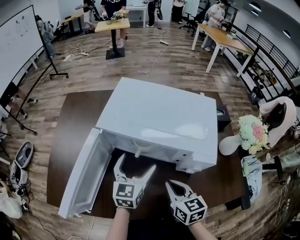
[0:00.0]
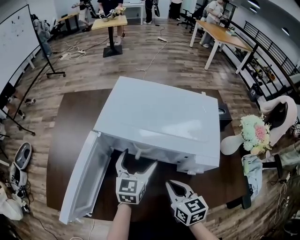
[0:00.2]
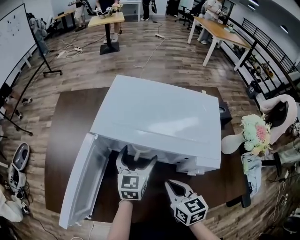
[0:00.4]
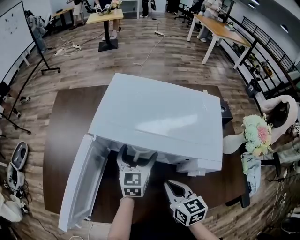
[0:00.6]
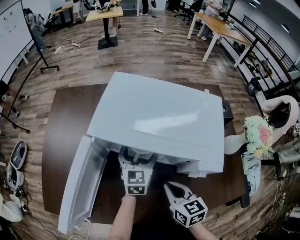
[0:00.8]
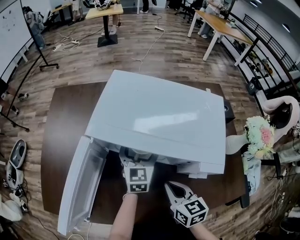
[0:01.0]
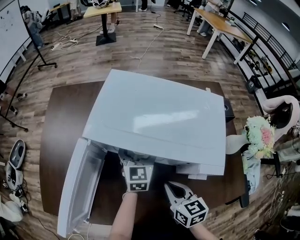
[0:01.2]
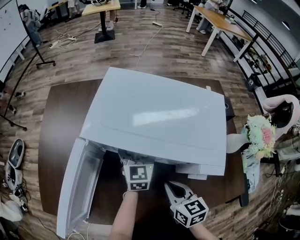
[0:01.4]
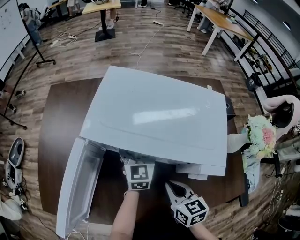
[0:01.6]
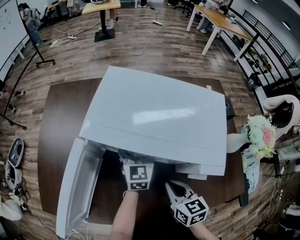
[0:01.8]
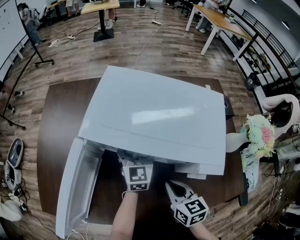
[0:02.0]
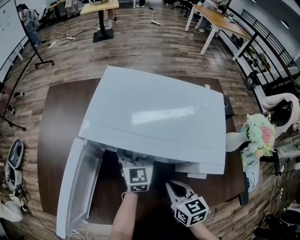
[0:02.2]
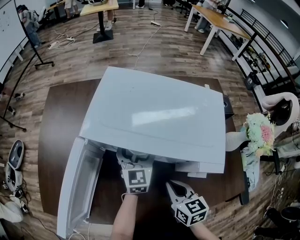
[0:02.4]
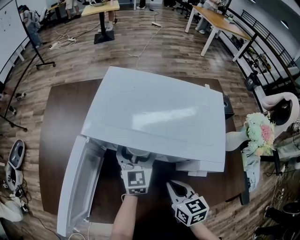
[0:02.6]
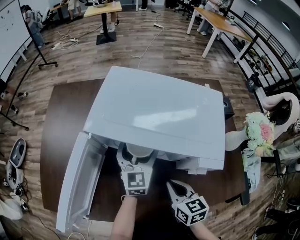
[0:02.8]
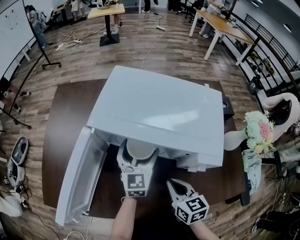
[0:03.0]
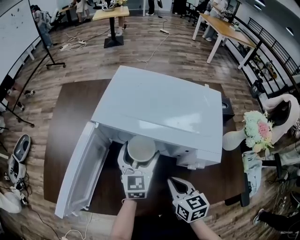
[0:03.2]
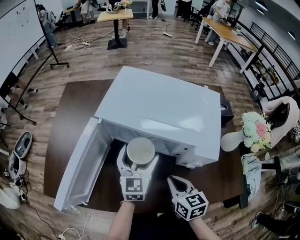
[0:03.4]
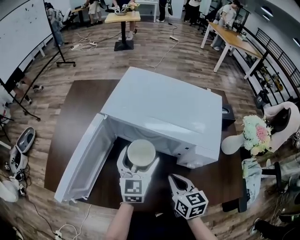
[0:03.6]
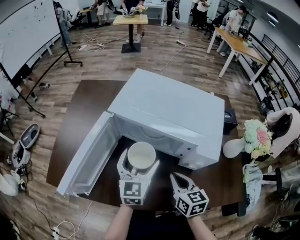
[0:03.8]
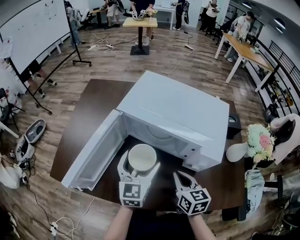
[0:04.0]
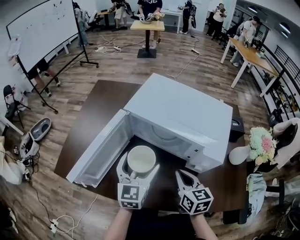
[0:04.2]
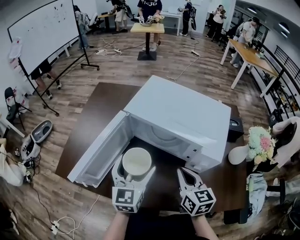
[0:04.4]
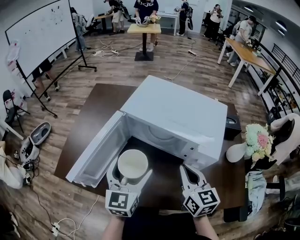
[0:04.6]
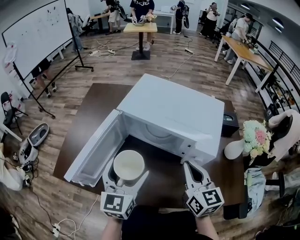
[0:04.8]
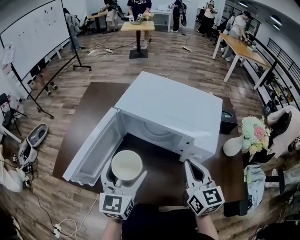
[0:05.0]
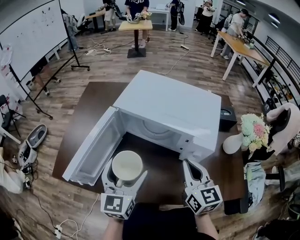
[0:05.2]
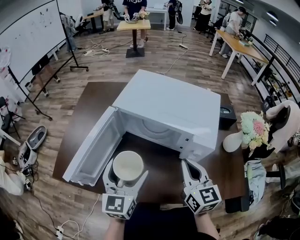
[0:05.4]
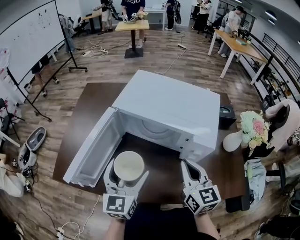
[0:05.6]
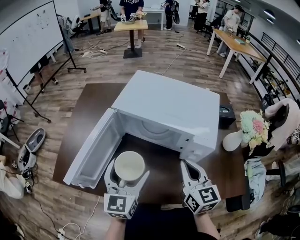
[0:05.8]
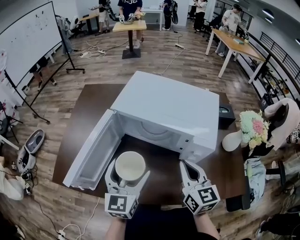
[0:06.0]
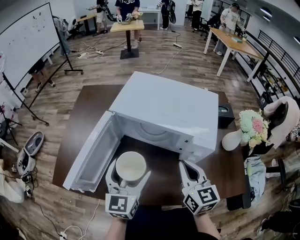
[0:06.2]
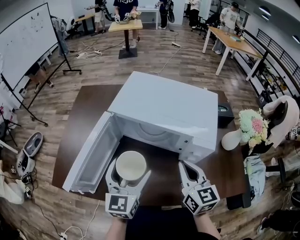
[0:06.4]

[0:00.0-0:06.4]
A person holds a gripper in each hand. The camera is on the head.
0:00.0 to 0:01.6: The left gripper travels forward by some 10 cm. Meanwhile the right gripper ends up approximately 5 cm from where it was.
0:01.6 to 0:03.2: The left gripper goes approximately 10 cm backward.
0:03.2 to 0:04.8: The right gripper is displaced upward by some 15 cm, and swivels some 20 degrees, while the left gripper shifts some 20 cm backward, upward and to the left.
0:04.8 to 0:06.4: The grippers make only small movements.

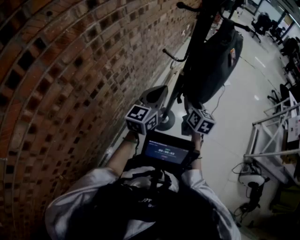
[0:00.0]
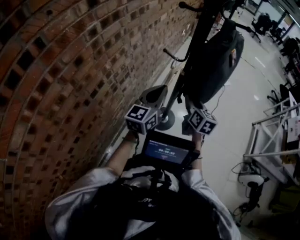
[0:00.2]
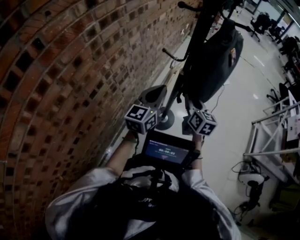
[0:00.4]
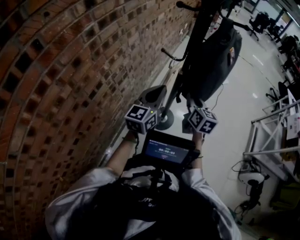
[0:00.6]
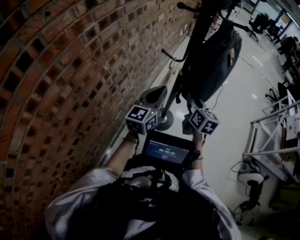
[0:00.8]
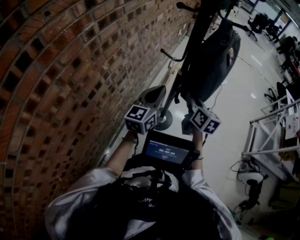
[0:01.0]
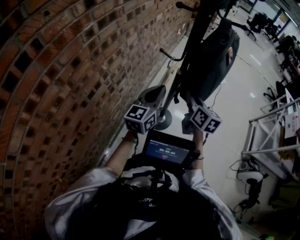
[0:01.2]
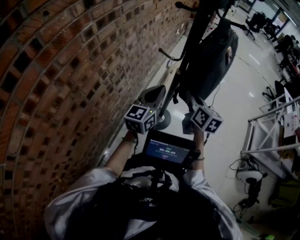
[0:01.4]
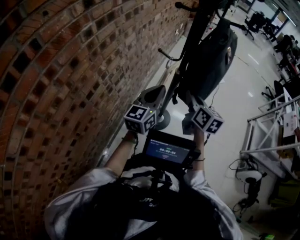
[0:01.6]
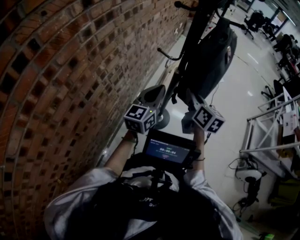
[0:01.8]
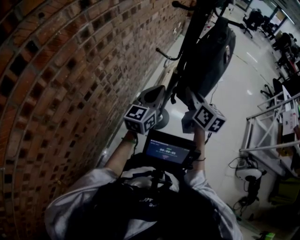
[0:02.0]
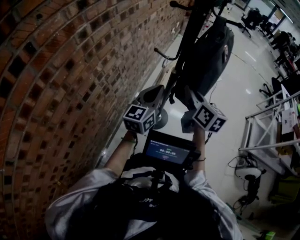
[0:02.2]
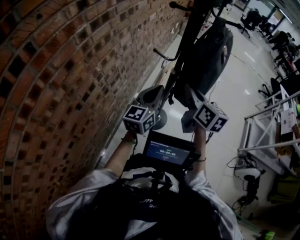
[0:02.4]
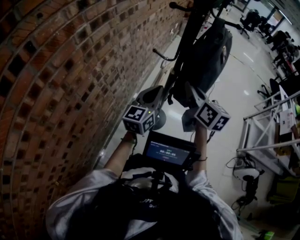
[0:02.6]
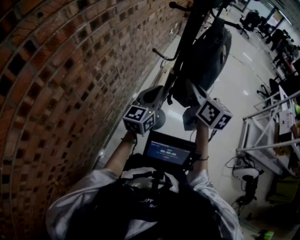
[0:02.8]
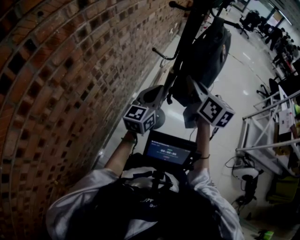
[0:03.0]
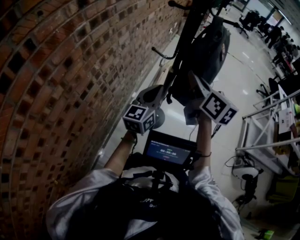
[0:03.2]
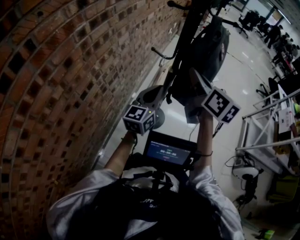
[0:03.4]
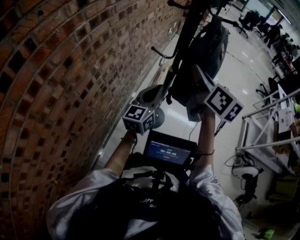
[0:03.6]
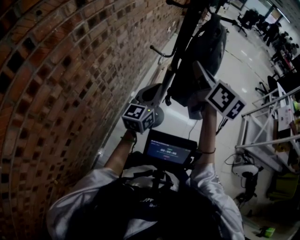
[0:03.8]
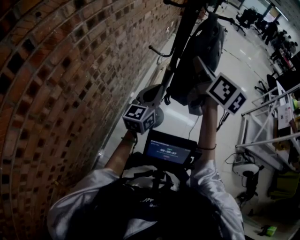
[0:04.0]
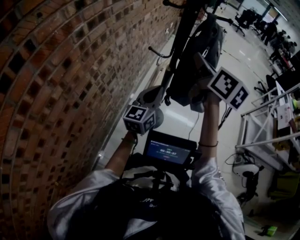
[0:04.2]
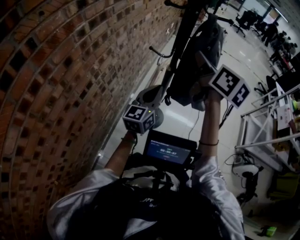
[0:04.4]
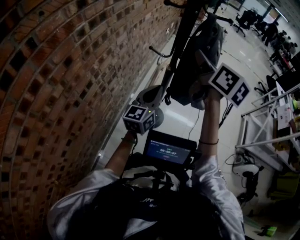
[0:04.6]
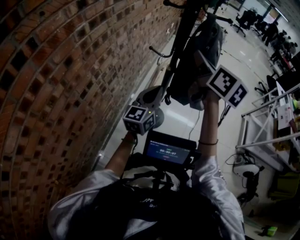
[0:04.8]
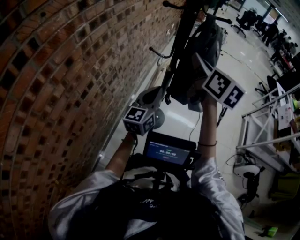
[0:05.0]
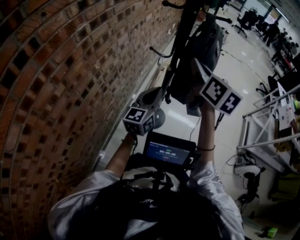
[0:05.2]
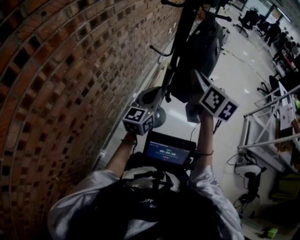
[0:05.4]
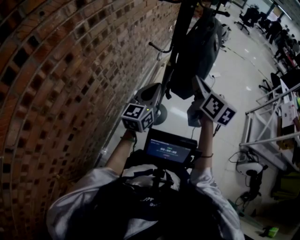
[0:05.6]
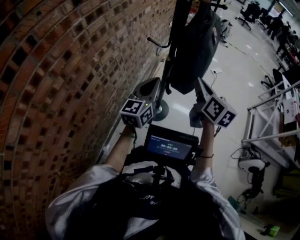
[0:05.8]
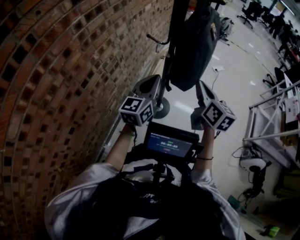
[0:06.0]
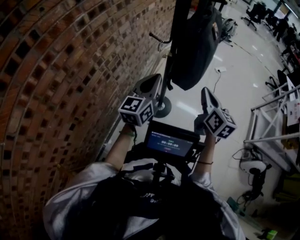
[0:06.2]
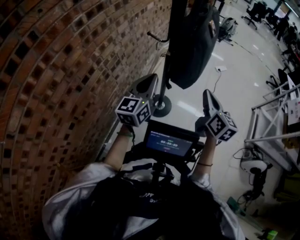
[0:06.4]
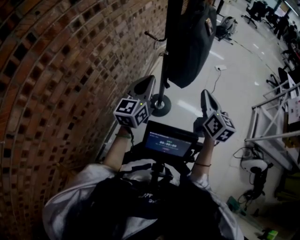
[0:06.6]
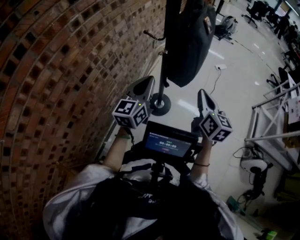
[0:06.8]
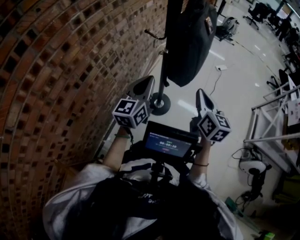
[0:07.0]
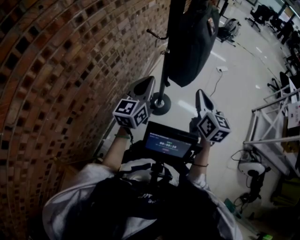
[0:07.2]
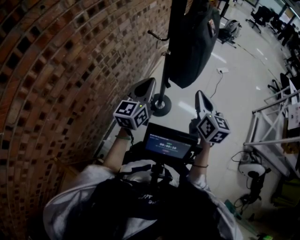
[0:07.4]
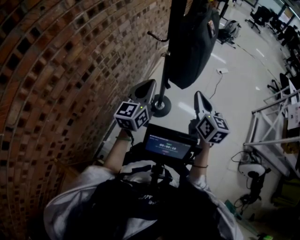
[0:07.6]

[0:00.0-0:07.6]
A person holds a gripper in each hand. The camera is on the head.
0:00.0 to 0:01.6: The right gripper shifts about 10 cm upward, and closes up.
0:01.6 to 0:03.0: The right gripper is displaced upward by about 10 cm.
0:03.0 to 0:04.6: The right gripper travels upward by roughly 10 cm.
0:04.6 to 0:06.0: The right gripper goes approximately 20 cm downward, to the right and backward.
0:06.0 to 0:07.6: The right gripper changes place by roughly 5 cm.

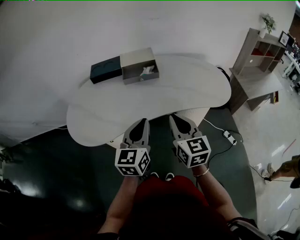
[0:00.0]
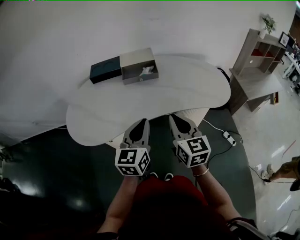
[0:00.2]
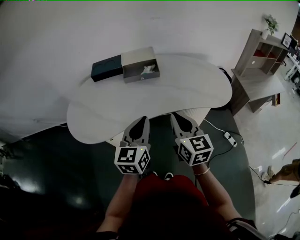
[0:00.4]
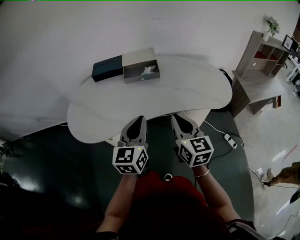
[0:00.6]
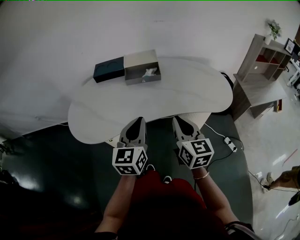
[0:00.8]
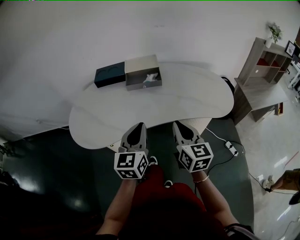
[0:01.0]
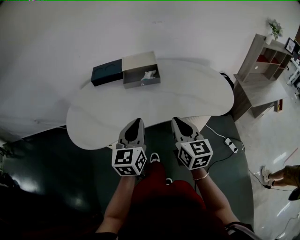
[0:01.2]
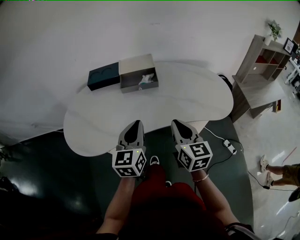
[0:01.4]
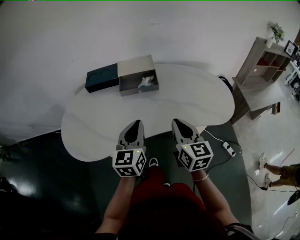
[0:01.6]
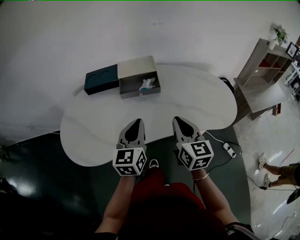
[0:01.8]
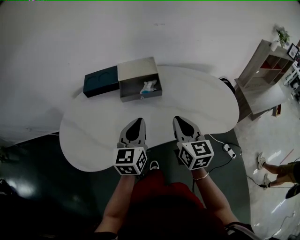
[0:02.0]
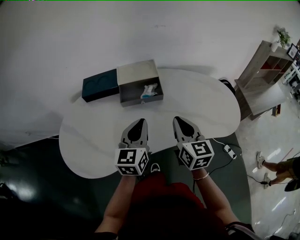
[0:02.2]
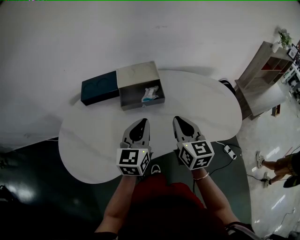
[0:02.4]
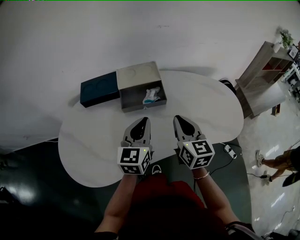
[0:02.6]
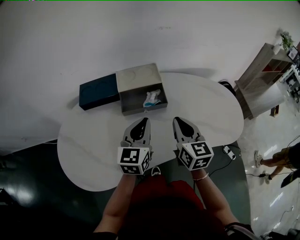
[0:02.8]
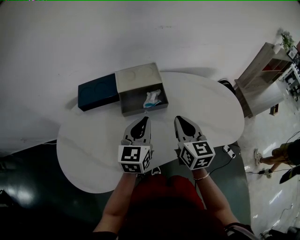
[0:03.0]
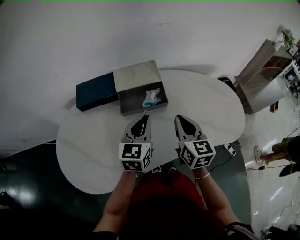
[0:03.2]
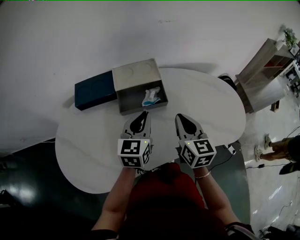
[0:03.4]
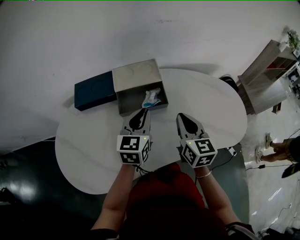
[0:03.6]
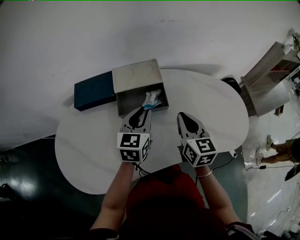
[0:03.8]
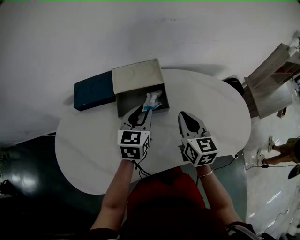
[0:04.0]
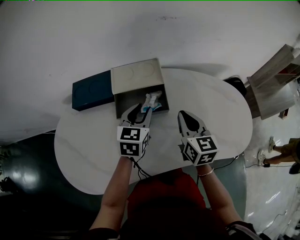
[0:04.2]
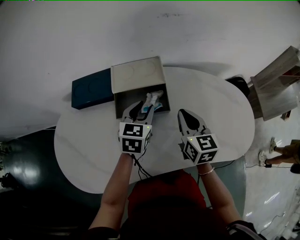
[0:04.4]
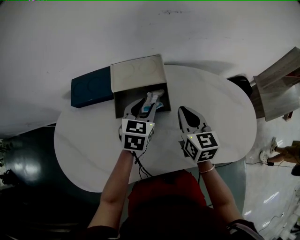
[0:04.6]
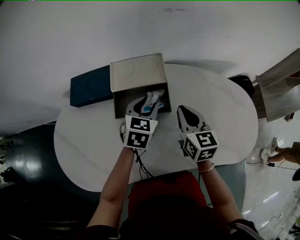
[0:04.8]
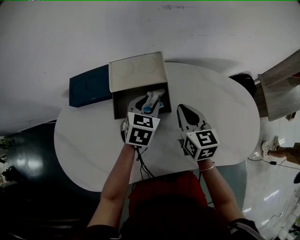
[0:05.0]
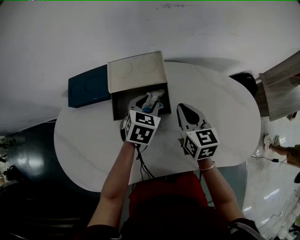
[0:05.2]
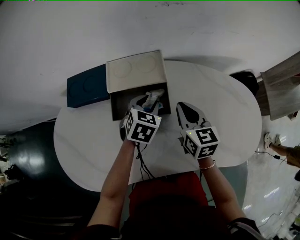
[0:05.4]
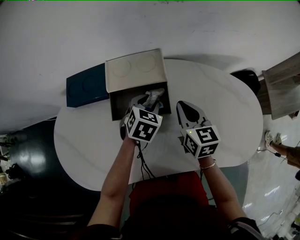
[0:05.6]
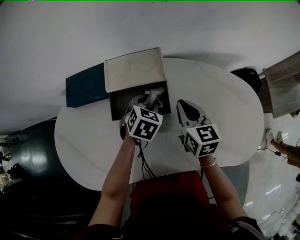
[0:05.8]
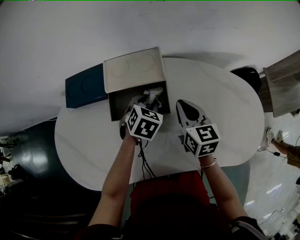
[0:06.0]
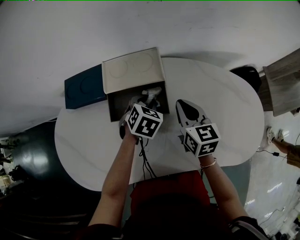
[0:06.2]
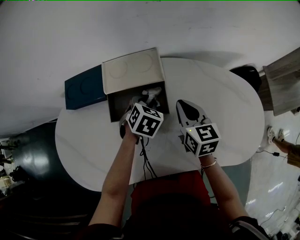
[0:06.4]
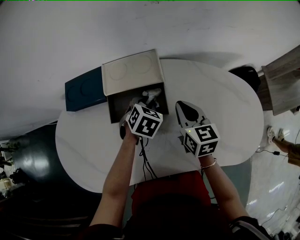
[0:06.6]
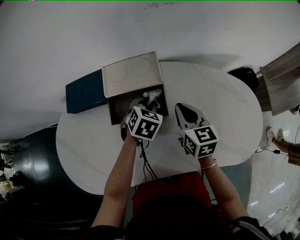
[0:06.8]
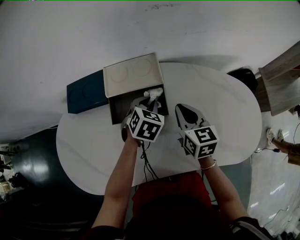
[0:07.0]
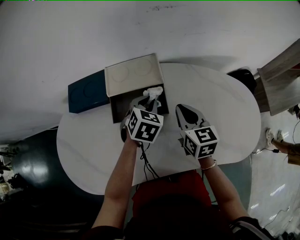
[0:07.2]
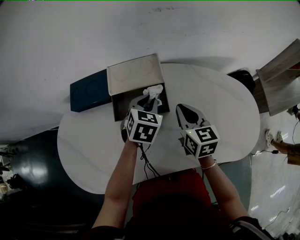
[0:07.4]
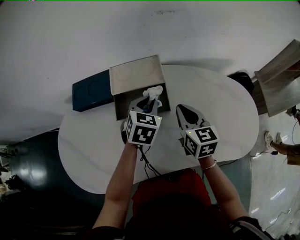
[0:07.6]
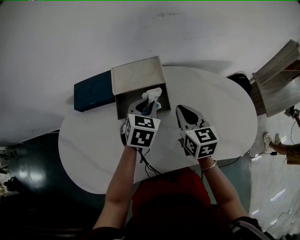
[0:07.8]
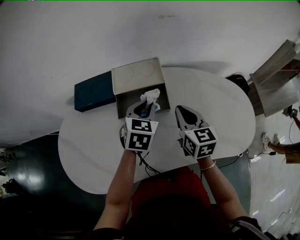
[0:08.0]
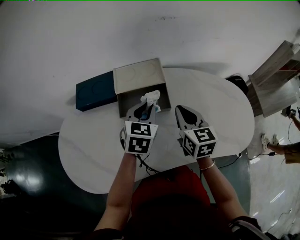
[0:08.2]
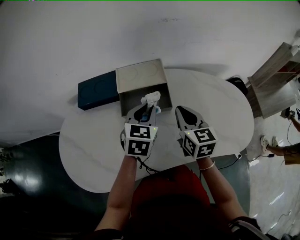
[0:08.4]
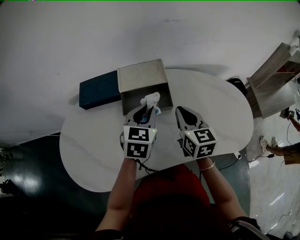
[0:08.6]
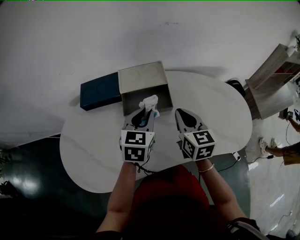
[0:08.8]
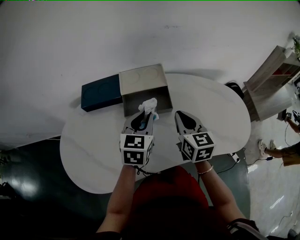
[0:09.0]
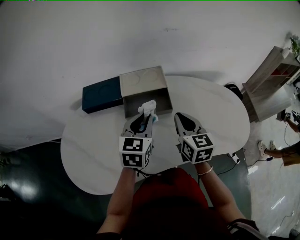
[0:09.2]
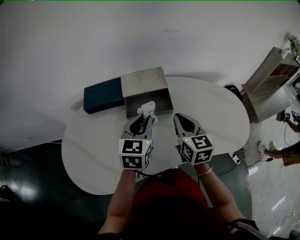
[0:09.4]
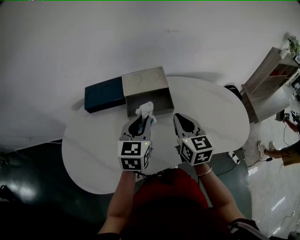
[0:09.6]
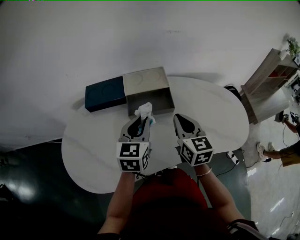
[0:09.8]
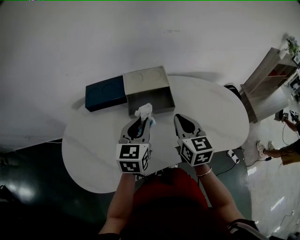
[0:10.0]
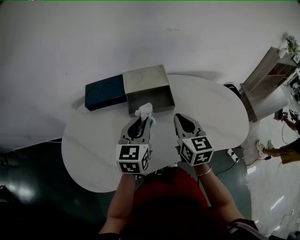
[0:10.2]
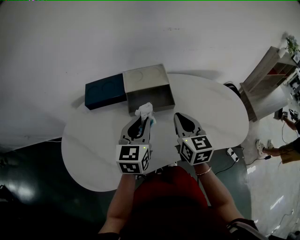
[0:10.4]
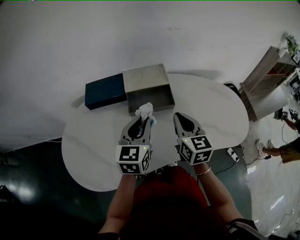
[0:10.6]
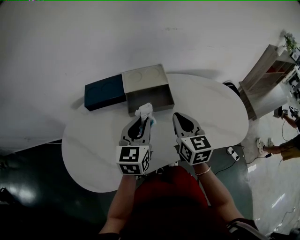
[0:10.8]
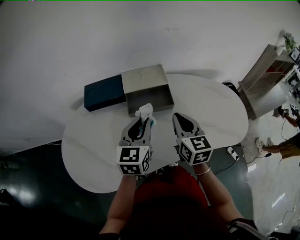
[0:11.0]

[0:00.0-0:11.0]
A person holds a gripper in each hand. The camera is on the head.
0:00.0 to 0:01.6: The two grippers go about 10 cm forward.
0:01.6 to 0:03.2: The grippers both shift forward by approximately 20 cm.
0:03.2 to 0:04.8: Both grippers travel together forward and downward, about 15 cm. The left gripper swivels some 30 degrees, and opens up.
0:04.8 to 0:06.2: The left gripper goes approximately 5 cm downward, and turns by approximately 20 degrees.
0:06.2 to 0:07.8: The left gripper shifts approximately 10 cm upward. Meanwhile the right gripper ends up about 5 cm from where it was.
0:07.8 to 0:09.4: The right gripper goes roughly 5 cm backward; the left gripper goes about 15 cm backward, upward and to the left, and turns by roughly 20 degrees.
0:09.4 to 0:11.0: The grippers move only a little.
